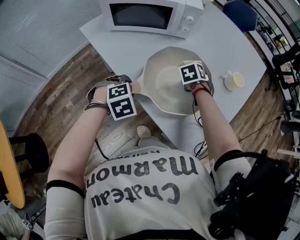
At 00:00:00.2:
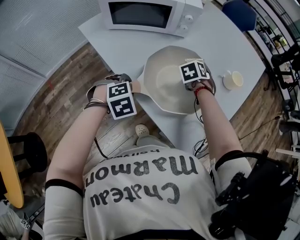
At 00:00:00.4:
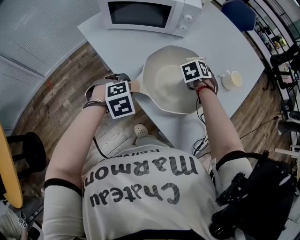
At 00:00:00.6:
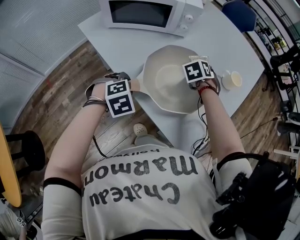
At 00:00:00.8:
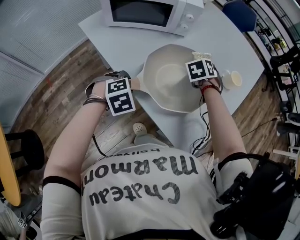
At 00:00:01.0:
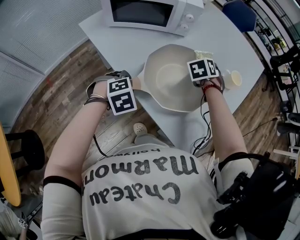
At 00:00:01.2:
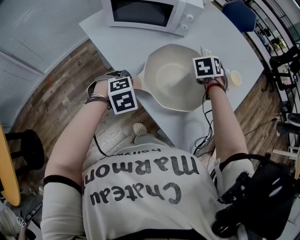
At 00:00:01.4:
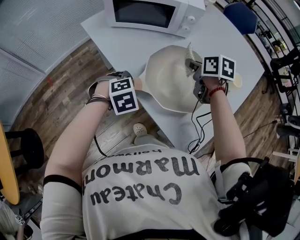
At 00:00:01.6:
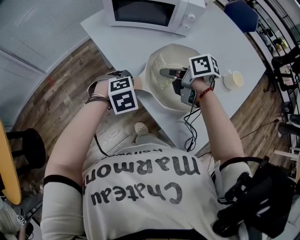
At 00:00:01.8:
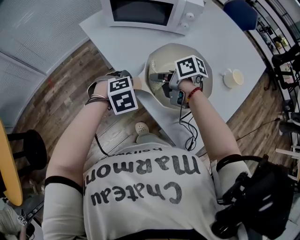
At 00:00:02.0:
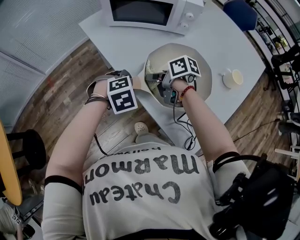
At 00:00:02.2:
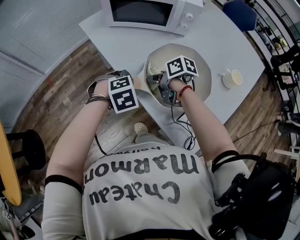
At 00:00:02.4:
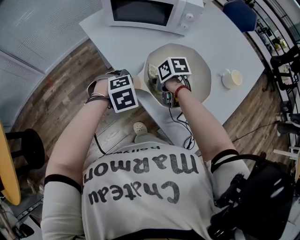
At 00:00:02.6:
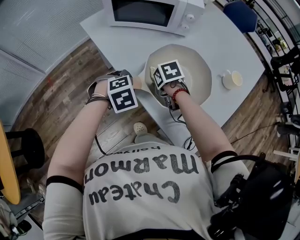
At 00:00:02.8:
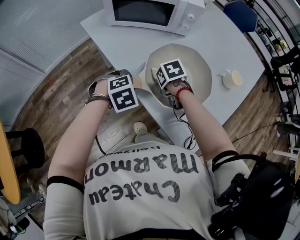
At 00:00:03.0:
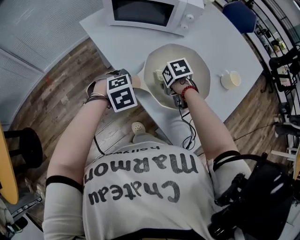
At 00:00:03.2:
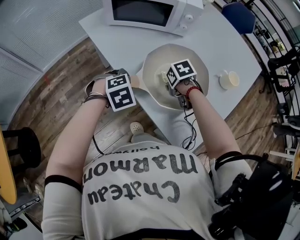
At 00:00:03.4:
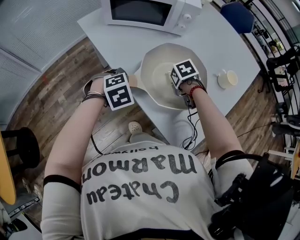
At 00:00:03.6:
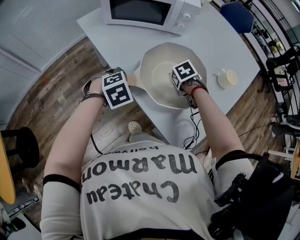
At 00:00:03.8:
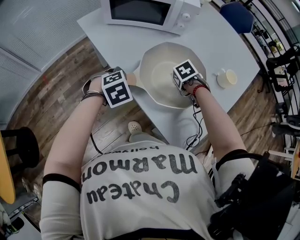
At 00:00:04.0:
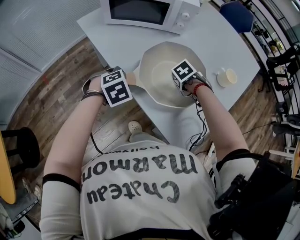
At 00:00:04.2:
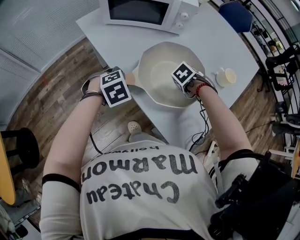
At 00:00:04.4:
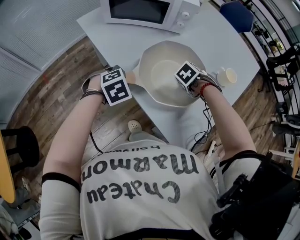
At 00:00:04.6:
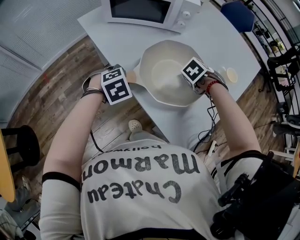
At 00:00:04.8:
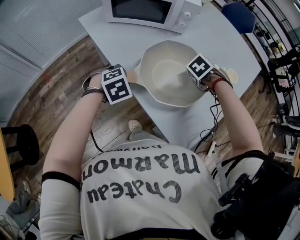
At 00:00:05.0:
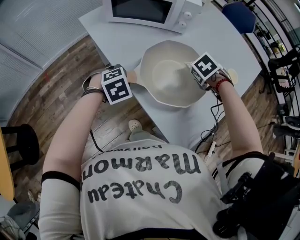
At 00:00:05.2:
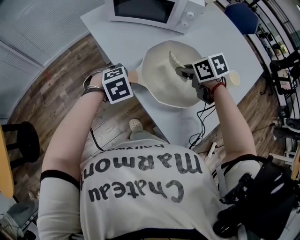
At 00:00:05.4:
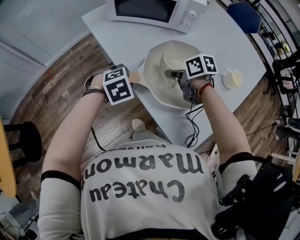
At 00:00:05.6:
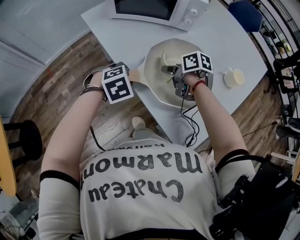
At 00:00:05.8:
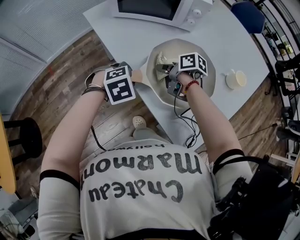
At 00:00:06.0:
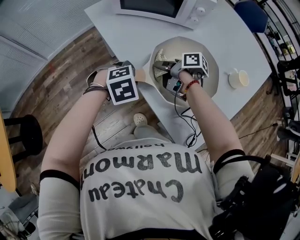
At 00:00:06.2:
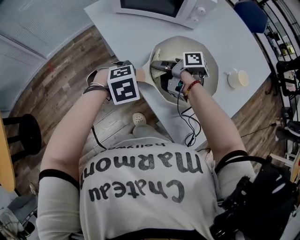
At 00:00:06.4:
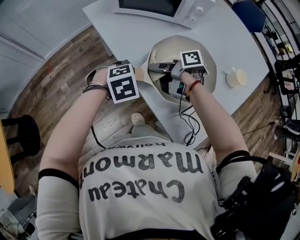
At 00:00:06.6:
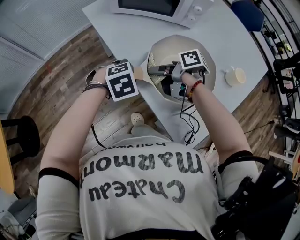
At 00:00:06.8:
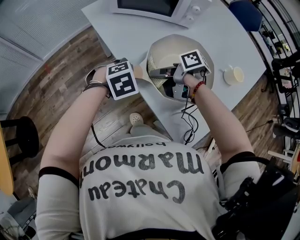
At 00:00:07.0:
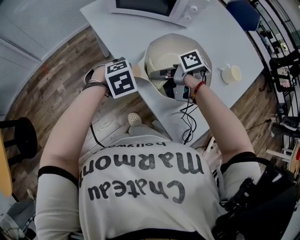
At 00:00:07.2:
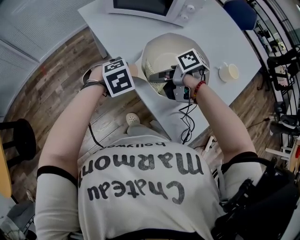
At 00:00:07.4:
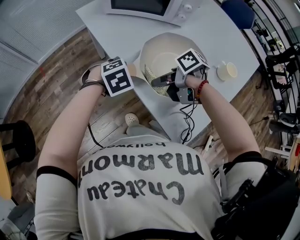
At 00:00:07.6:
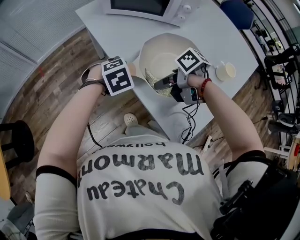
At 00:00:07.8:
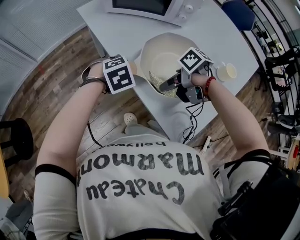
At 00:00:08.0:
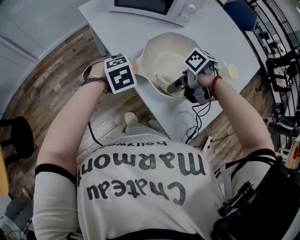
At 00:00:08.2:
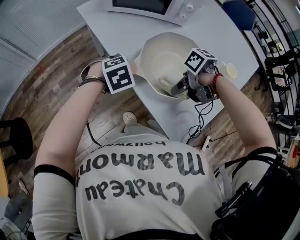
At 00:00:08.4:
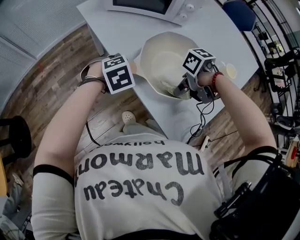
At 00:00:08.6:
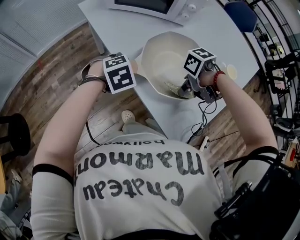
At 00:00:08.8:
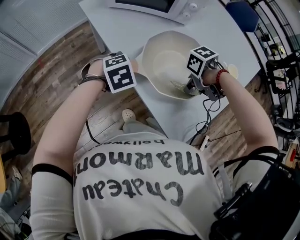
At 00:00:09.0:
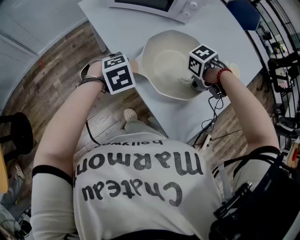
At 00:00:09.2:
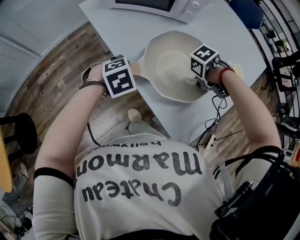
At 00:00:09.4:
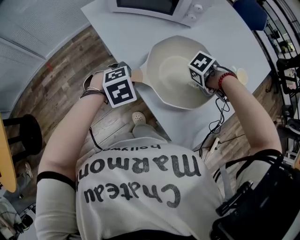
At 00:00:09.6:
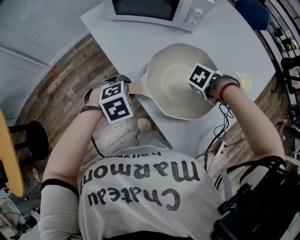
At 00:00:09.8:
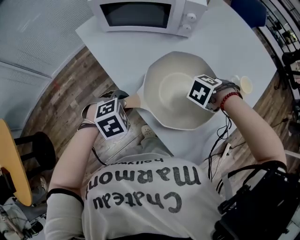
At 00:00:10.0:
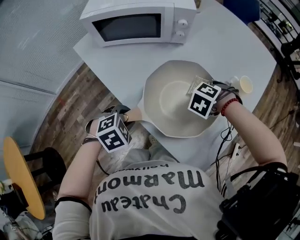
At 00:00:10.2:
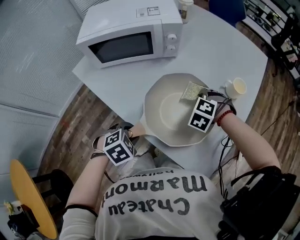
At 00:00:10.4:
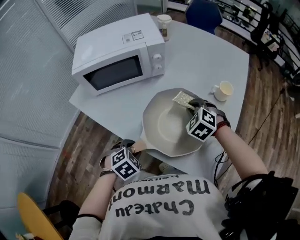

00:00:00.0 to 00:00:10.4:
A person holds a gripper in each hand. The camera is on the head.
00:00:00.0 to 00:00:01.4: The right gripper heads upward, covering some 10 cm, and swivels approximately 50 degrees.
00:00:01.4 to 00:00:03.0: The right gripper heads downward, to the left and backward, covering about 15 cm, and rotates about 40 degrees.
00:00:03.0 to 00:00:04.4: The right gripper shifts by some 15 cm, and changes its angle by roughly 40 degrees.
00:00:04.4 to 00:00:06.0: The right gripper changes place by roughly 20 cm, and tips its fingers upward by approximately 50 degrees.
00:00:06.0 to 00:00:07.4: The right gripper ends up about 10 cm from where it was, and rotates some 30 degrees.
00:00:07.4 to 00:00:09.0: The right gripper ends up about 20 cm from where it was, and tips its fingers downward by some 30 degrees.
00:00:09.0 to 00:00:10.4: The right gripper shifts by about 15 cm, and changes its angle by about 70 degrees.

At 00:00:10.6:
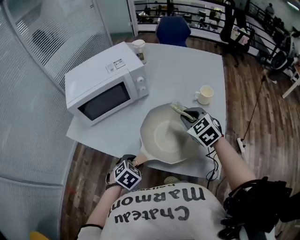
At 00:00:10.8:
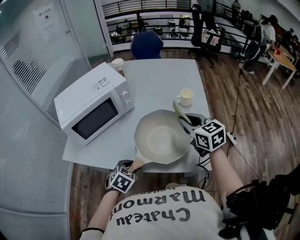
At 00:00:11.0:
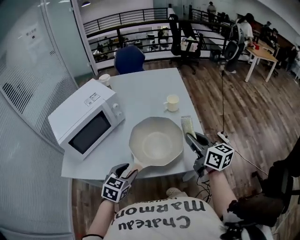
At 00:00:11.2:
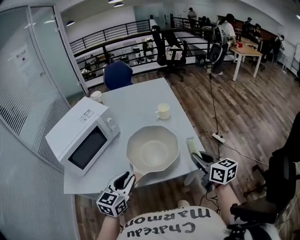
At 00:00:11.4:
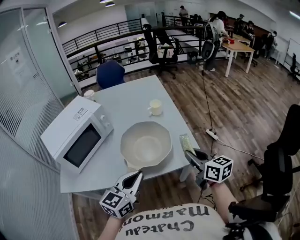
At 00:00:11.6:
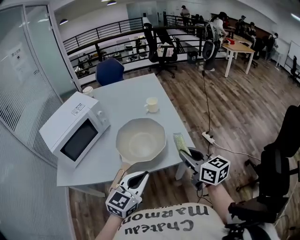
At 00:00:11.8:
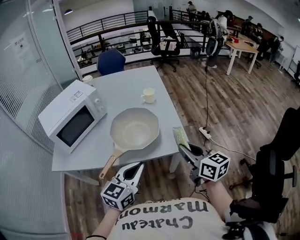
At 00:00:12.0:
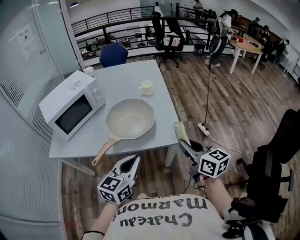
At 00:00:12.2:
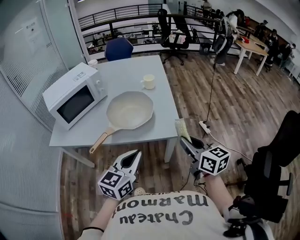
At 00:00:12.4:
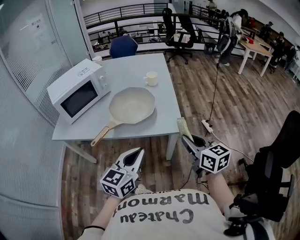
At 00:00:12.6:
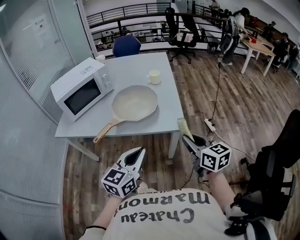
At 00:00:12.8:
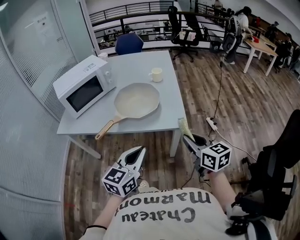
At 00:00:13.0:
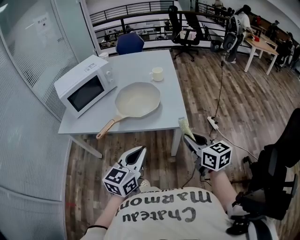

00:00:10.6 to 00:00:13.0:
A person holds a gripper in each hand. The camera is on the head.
00:00:10.6 to 00:00:11.8: The right gripper goes up and down, roughly 10 cm each way, reversing 2 times, and changes its angle by some 60 degrees; the left gripper is displaced upward by about 20 cm, points its fingers roughly 60 degrees further upward, and closes.
00:00:11.8 to 00:00:13.0: Both grippers move backward and to the right, roughly 15 cm.

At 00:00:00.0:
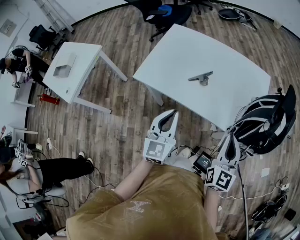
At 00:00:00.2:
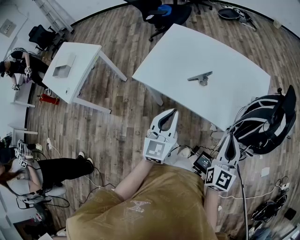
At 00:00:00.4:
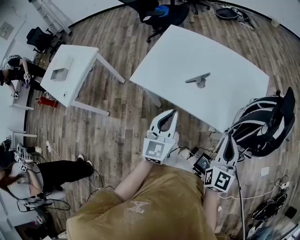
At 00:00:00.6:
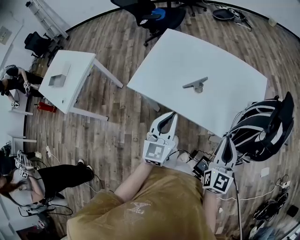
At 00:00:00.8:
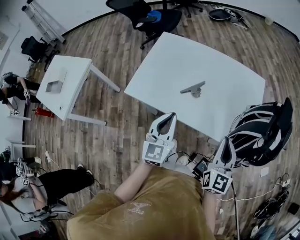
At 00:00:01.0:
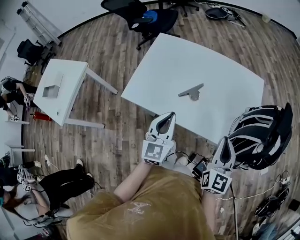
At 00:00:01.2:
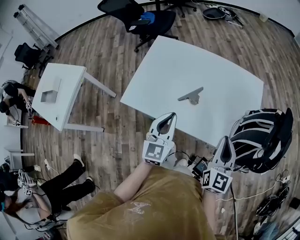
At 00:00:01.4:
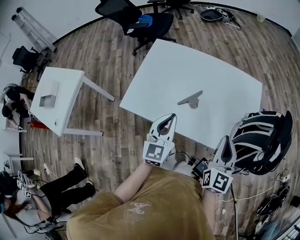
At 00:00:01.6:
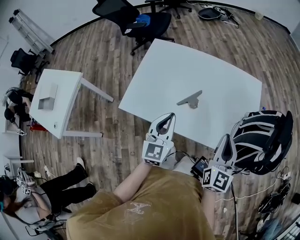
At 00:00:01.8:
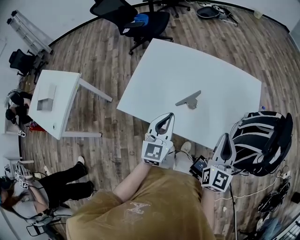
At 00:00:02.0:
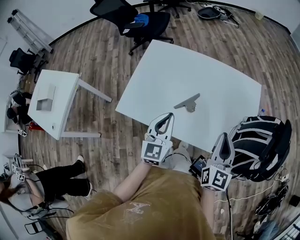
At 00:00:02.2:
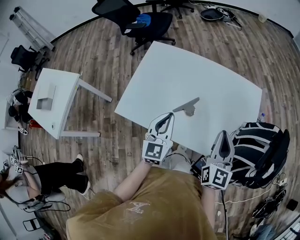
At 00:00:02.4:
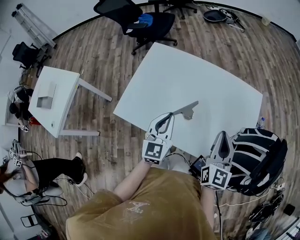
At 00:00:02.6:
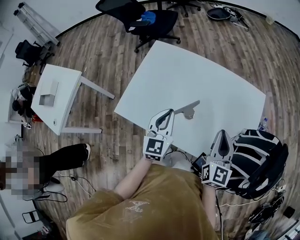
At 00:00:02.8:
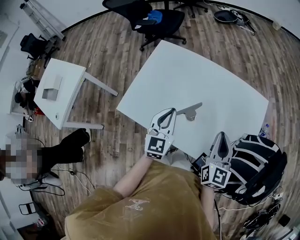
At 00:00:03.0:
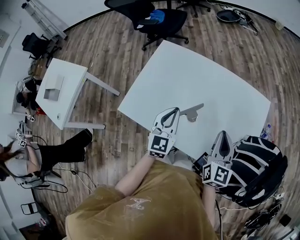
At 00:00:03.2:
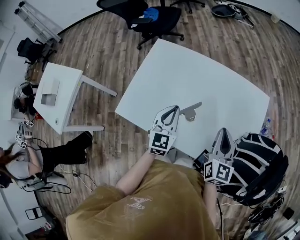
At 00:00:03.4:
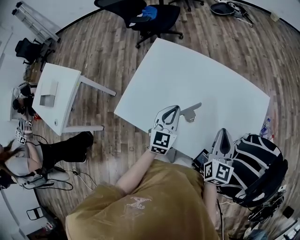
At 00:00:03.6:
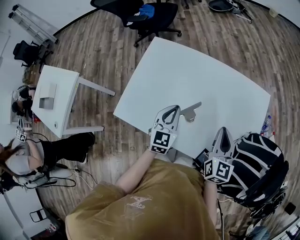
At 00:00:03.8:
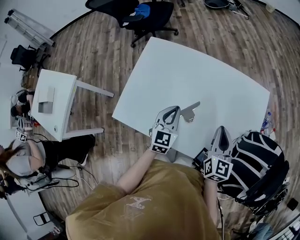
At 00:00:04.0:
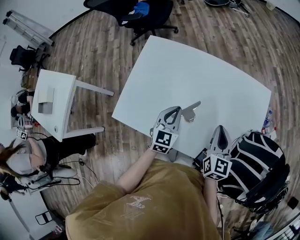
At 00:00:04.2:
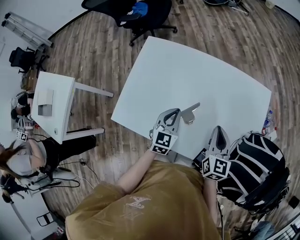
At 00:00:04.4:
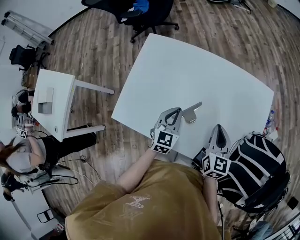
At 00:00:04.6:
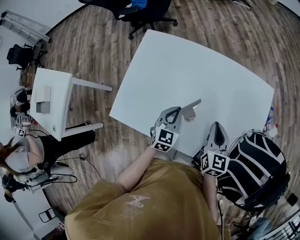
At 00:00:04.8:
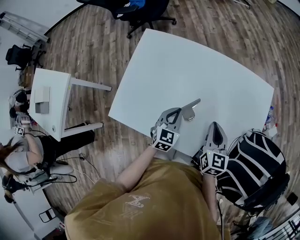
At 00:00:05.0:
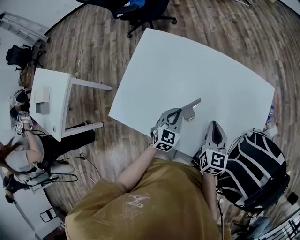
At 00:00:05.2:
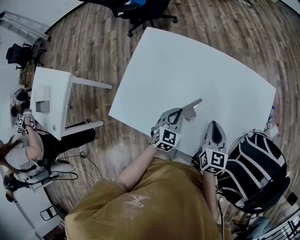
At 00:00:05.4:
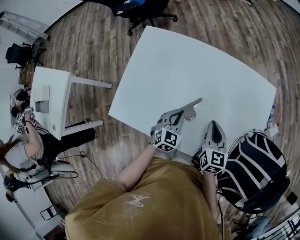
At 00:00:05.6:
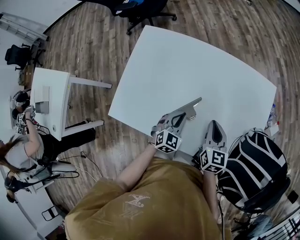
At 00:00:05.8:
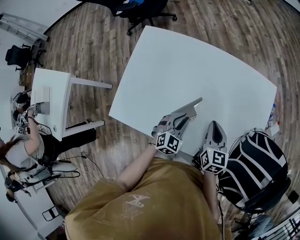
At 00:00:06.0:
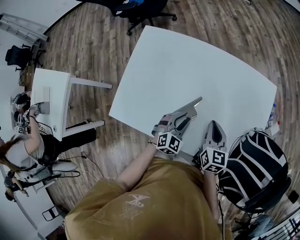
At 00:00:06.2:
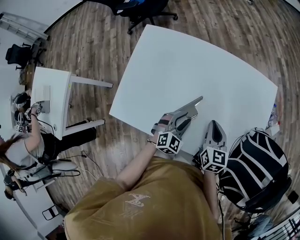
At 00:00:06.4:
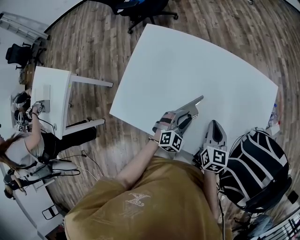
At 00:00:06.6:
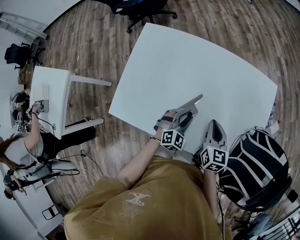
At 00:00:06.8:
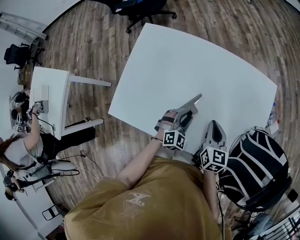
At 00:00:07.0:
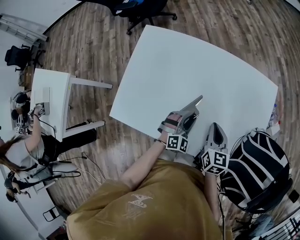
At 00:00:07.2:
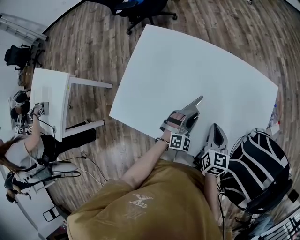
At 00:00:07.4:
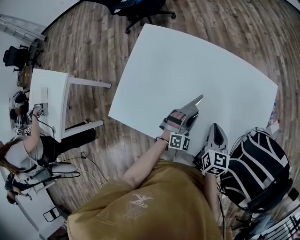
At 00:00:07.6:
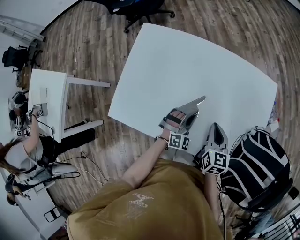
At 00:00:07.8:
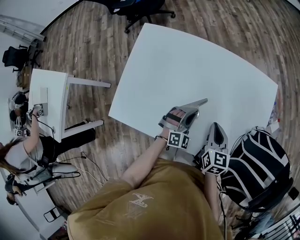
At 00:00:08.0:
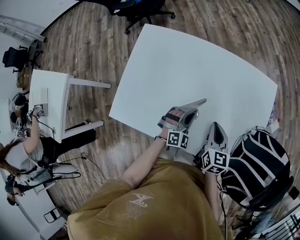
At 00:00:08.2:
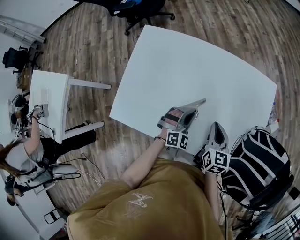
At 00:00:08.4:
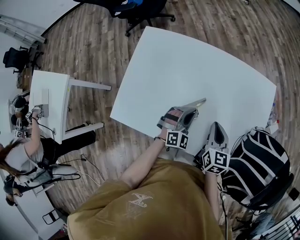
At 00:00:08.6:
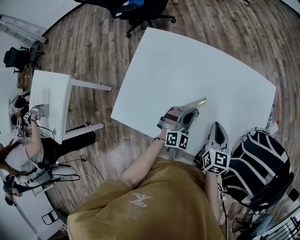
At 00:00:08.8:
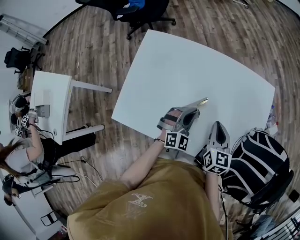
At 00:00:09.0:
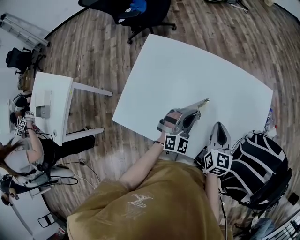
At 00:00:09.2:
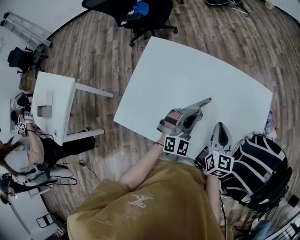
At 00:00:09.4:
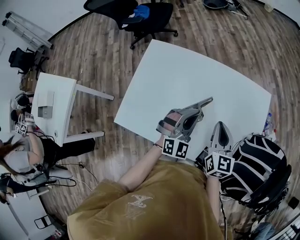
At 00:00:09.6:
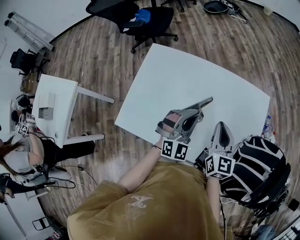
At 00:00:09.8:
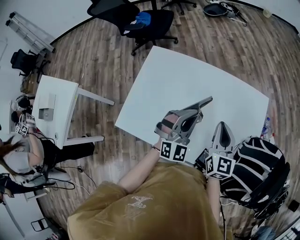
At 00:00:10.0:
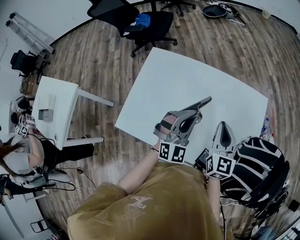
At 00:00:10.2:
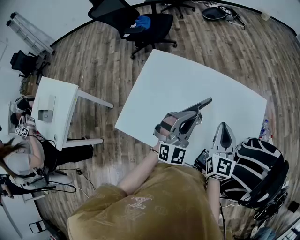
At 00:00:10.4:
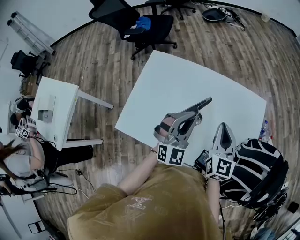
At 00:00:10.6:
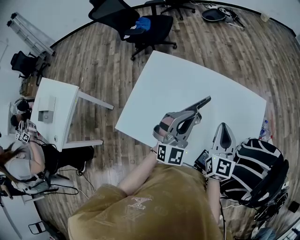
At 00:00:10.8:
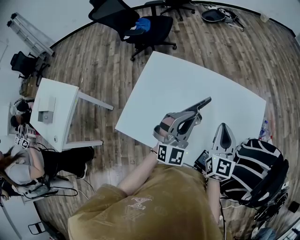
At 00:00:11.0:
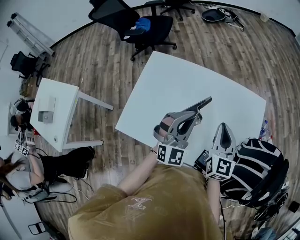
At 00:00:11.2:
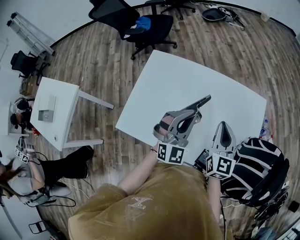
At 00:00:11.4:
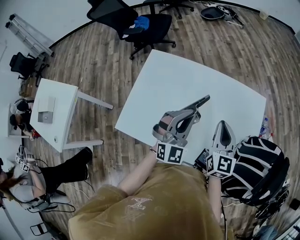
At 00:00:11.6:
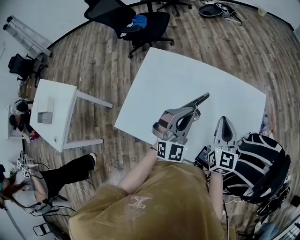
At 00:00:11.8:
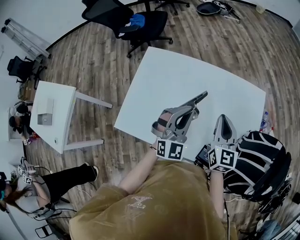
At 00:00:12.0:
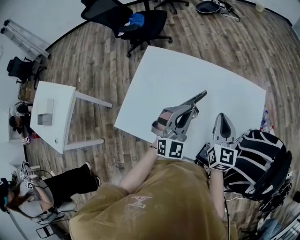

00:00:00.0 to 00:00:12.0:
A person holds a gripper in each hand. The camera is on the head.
00:00:00.0 to 00:00:01.6: Both grippers travel together forward, roughly 15 cm.
00:00:01.6 to 00:00:03.0: Both grippers travel together forward, about 10 cm.
00:00:03.0 to 00:00:04.4: The two grippers go roughly 10 cm downward.
00:00:04.4 to 00:00:06.0: The right gripper is displaced downward by some 5 cm. The left gripper is displaced downward and to the right by some 10 cm, turns by some 30 degrees, and opens.
00:00:06.0 to 00:00:07.6: The left gripper turns by about 30 degrees.
00:00:07.6 to 00:00:09.0: The left gripper heads upward, covering roughly 10 cm, while the right gripper moves upward, about 5 cm.
00:00:09.0 to 00:00:10.4: Both grippers move upward, some 15 cm.
00:00:10.4 to 00:00:12.0: The grippers move only a little.
